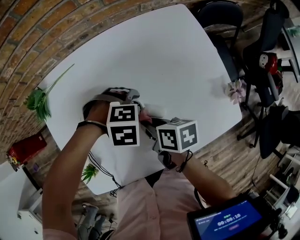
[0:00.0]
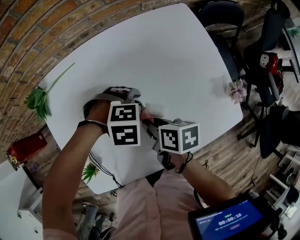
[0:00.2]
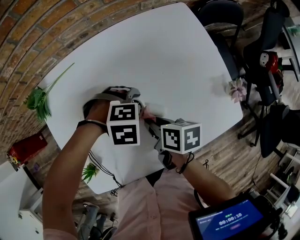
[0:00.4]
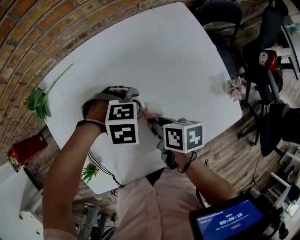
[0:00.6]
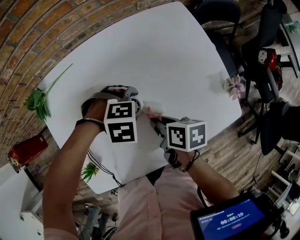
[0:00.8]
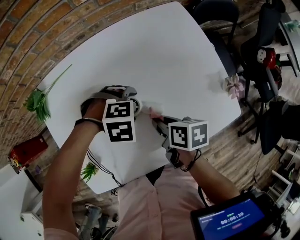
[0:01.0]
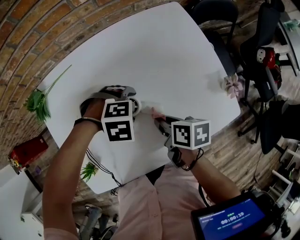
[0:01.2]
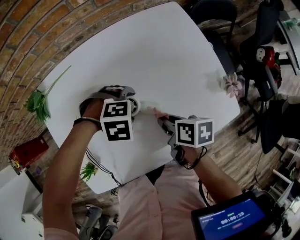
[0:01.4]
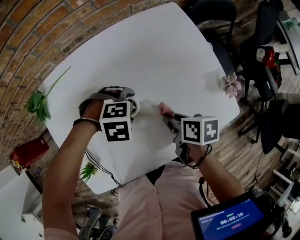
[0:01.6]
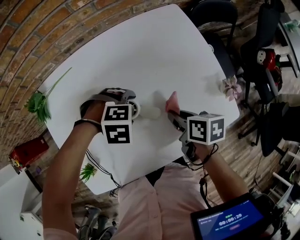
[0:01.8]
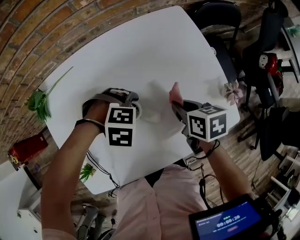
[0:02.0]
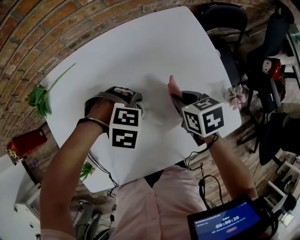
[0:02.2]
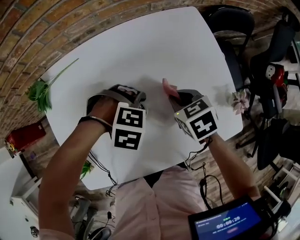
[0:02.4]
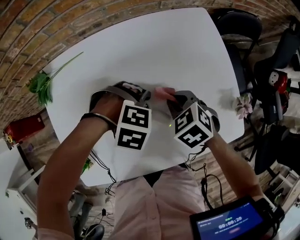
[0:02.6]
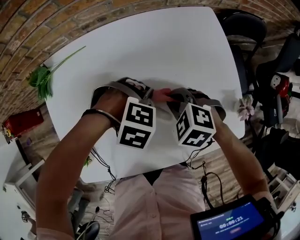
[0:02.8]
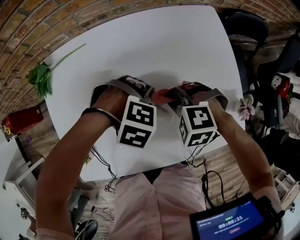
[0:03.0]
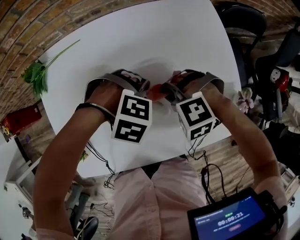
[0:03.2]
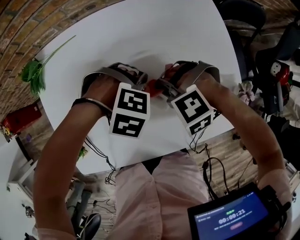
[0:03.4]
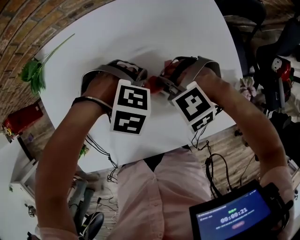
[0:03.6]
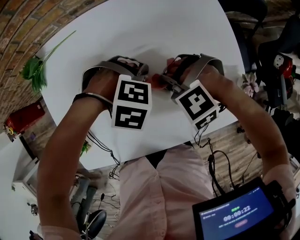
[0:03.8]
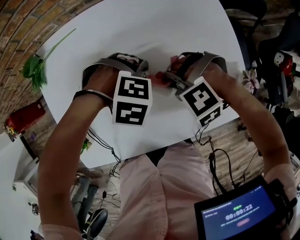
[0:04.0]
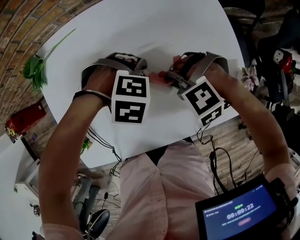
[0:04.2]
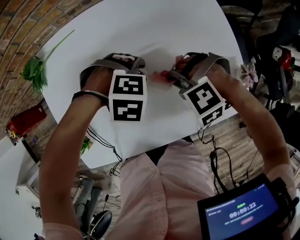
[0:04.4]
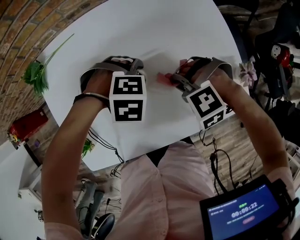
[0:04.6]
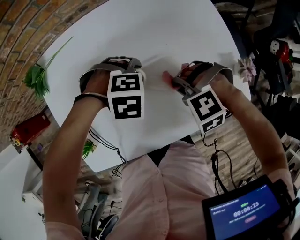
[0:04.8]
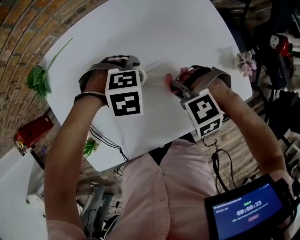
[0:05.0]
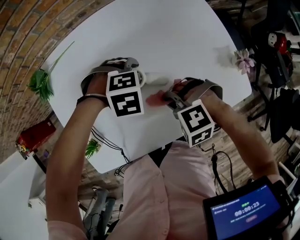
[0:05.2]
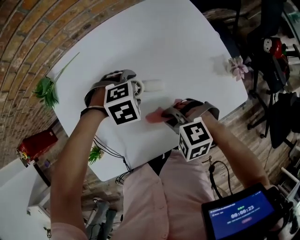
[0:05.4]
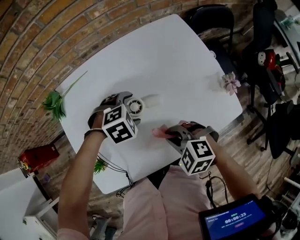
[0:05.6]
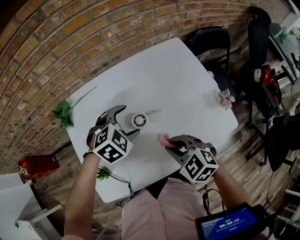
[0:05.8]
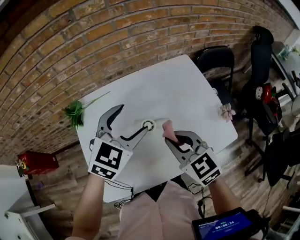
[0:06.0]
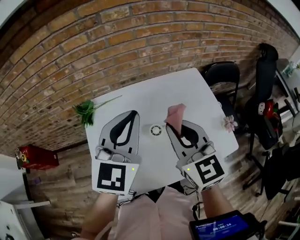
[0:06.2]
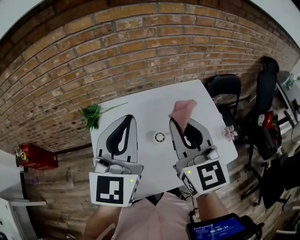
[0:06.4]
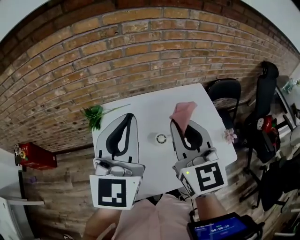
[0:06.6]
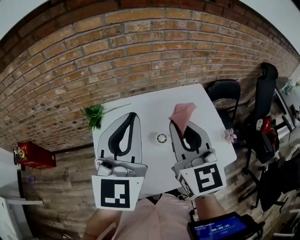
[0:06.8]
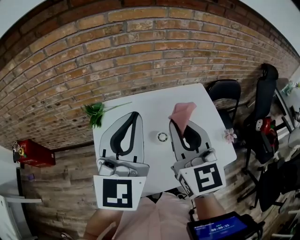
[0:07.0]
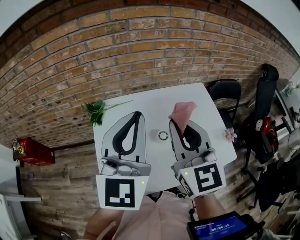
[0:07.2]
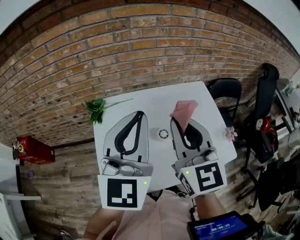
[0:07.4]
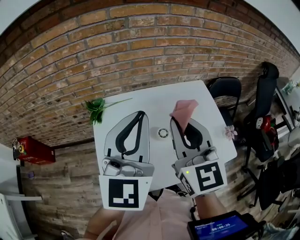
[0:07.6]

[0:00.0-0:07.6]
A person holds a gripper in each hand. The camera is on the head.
0.0 to 1.6 s: The right gripper moves roughly 10 cm.
1.6 to 3.0 s: The right gripper changes place by approximately 5 cm, and twists some 110 degrees counterclockwise, seen from behind.
3.0 to 4.6 s: The right gripper shifts by about 5 cm, and swivels about 20 degrees.
4.6 to 6.0 s: Both grippers move upward, some 20 cm. The left gripper points its fingers roughly 50 degrees further upward. Meanwhile the right gripper tilts its fingers approximately 50 degrees upward.
6.0 to 7.6 s: The right gripper goes roughly 20 cm upward, and swivels approximately 30 degrees. Meanwhile the left gripper moves upward and to the left, approximately 20 cm, tilts its fingers some 30 degrees upward, and closes its fingers.

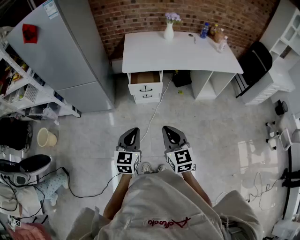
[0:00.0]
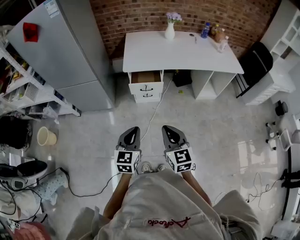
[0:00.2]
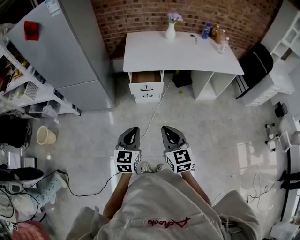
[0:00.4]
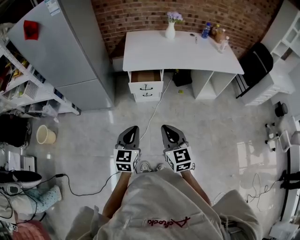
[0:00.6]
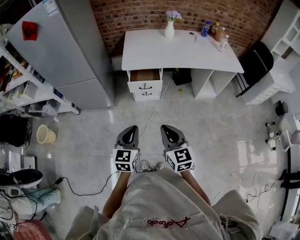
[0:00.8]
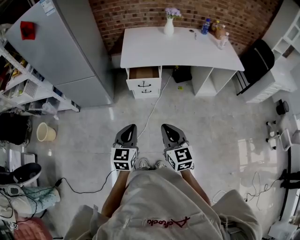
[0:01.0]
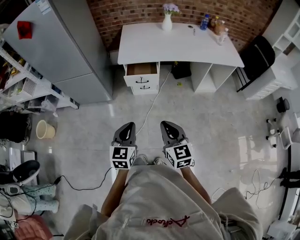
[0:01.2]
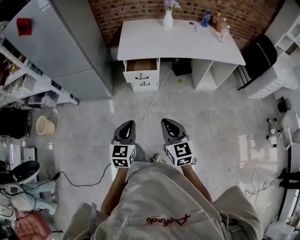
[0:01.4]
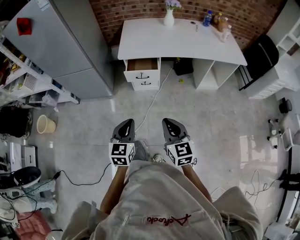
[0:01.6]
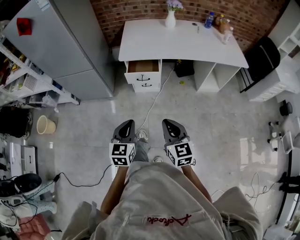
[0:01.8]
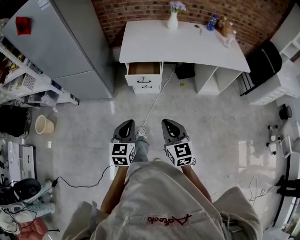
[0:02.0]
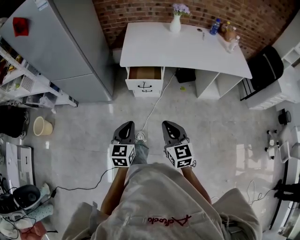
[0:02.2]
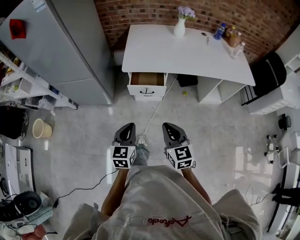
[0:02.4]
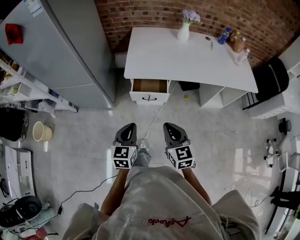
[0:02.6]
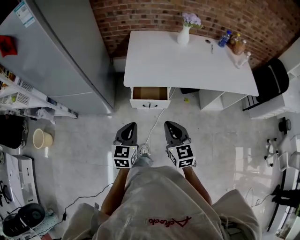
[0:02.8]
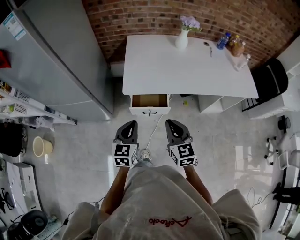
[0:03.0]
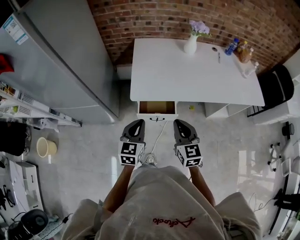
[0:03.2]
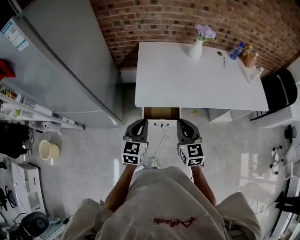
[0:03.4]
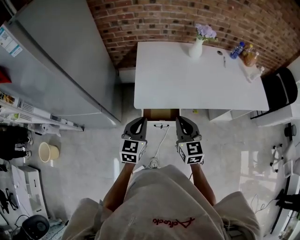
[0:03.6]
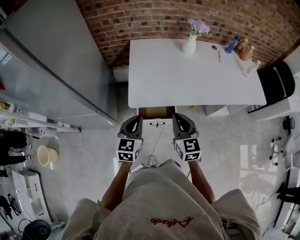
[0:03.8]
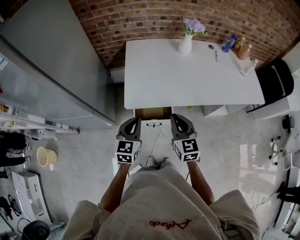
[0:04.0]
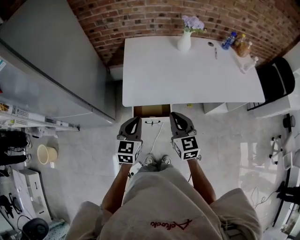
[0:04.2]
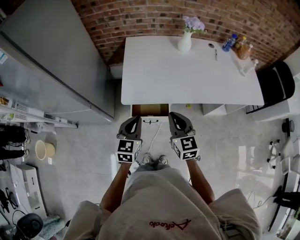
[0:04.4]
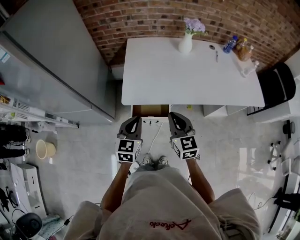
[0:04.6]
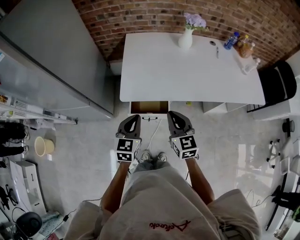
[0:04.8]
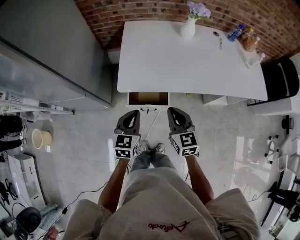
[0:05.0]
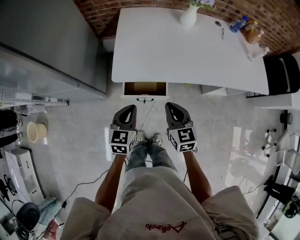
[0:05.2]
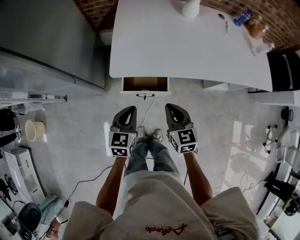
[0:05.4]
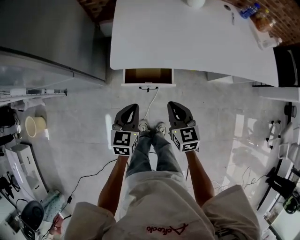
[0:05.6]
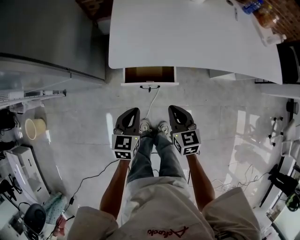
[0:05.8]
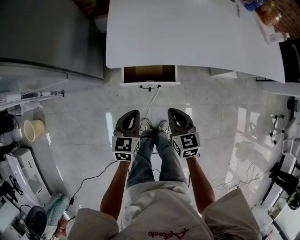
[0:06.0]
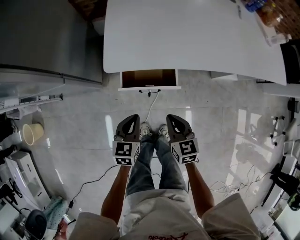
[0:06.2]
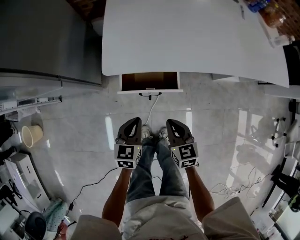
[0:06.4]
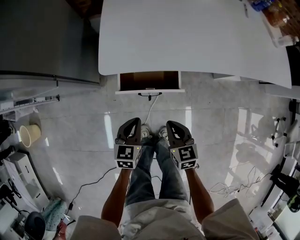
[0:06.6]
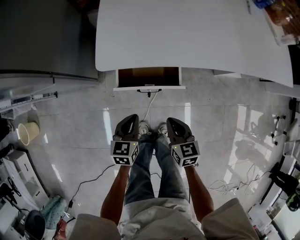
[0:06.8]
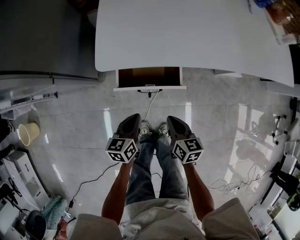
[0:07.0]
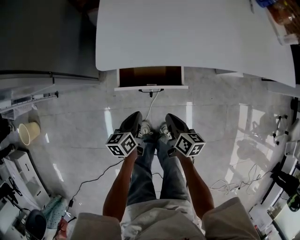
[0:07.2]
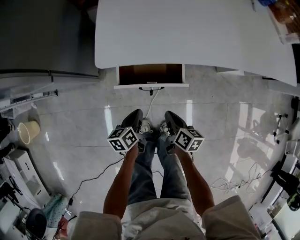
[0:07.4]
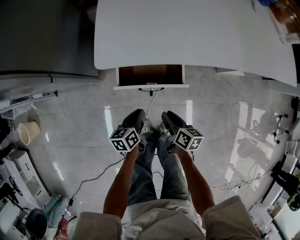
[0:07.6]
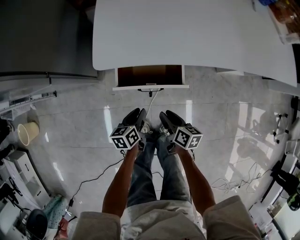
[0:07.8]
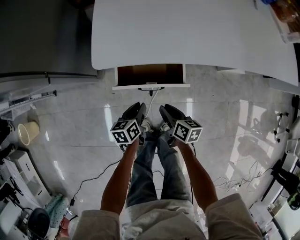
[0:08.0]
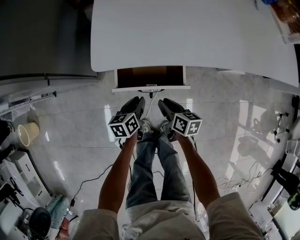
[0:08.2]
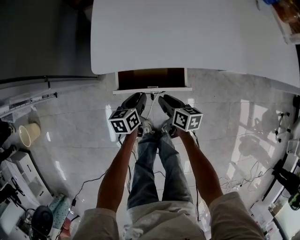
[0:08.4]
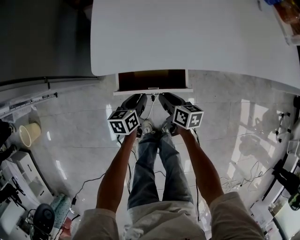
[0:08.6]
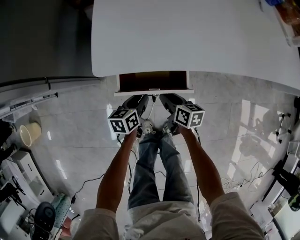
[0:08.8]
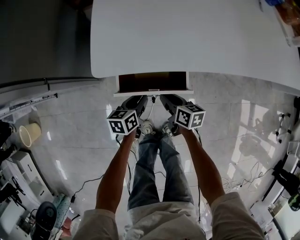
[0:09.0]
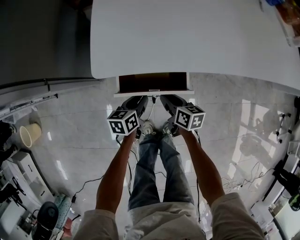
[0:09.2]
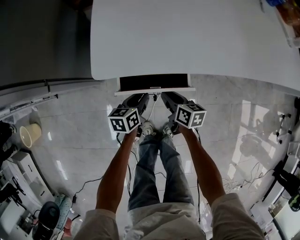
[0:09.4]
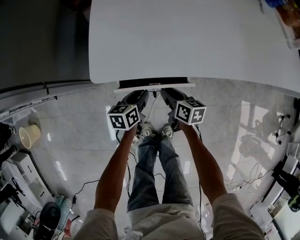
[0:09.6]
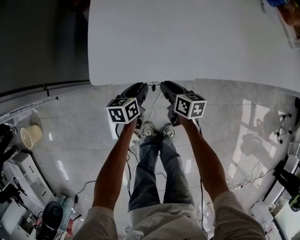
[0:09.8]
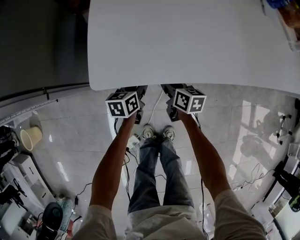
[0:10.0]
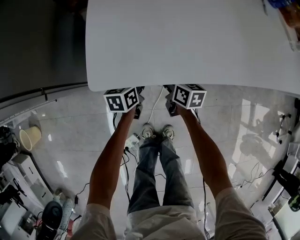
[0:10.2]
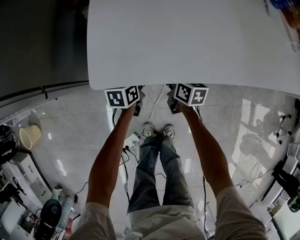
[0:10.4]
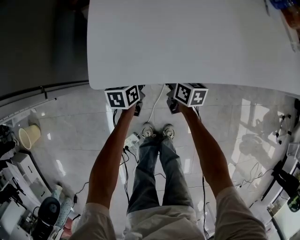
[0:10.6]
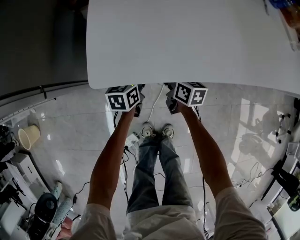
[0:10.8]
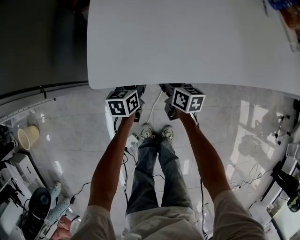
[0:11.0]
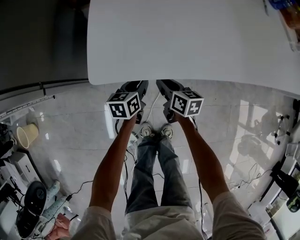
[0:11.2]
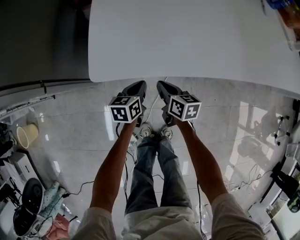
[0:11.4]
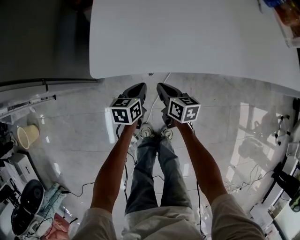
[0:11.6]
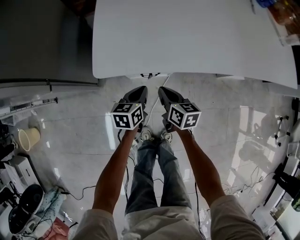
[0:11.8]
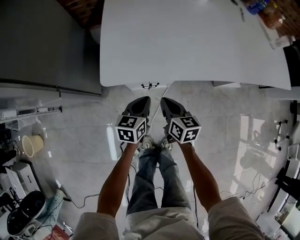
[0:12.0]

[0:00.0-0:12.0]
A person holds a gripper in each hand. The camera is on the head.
0.0 to 1.6 s: The right gripper is displaced to the right by some 5 cm.
1.6 to 3.0 s: Both grippers travel together forward, roughly 35 cm.
3.0 to 4.4 s: The grippers both shift forward by approximately 10 cm.
4.4 to 6.0 s: Both grippers travel together downward, approximately 20 cm. The right gripper rotates some 20 degrees.
6.0 to 7.6 s: Both grippers move downward, about 20 cm. The right gripper twists roughly 40 degrees clockwise, seen from behind, and opens up. The left gripper rotates roughly 40 degrees.
7.6 to 9.0 s: The two grippers go some 10 cm forward.
9.0 to 10.4 s: The grippers both shift forward by roughly 15 cm.
10.4 to 12.0 s: The two grippers go some 15 cm upward and backward. The left gripper closes up. The right gripper closes its fingers.

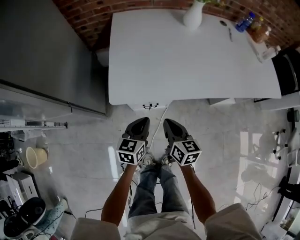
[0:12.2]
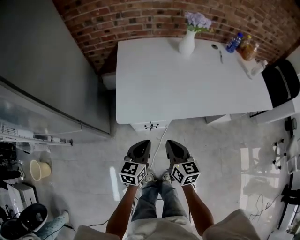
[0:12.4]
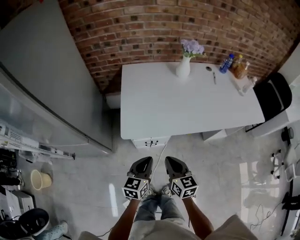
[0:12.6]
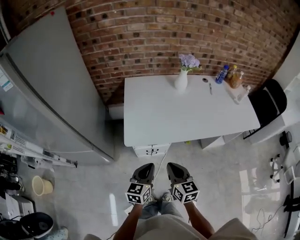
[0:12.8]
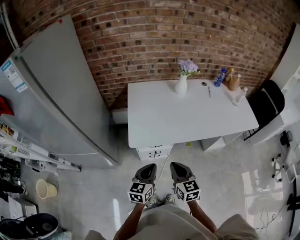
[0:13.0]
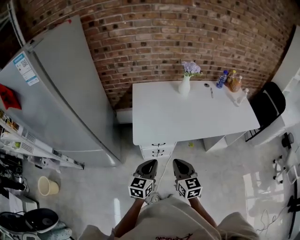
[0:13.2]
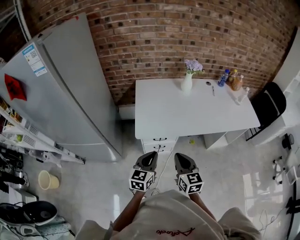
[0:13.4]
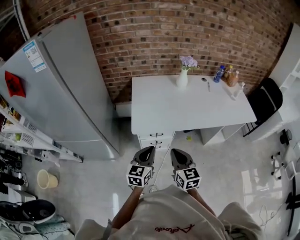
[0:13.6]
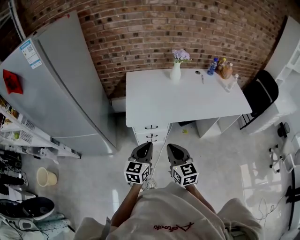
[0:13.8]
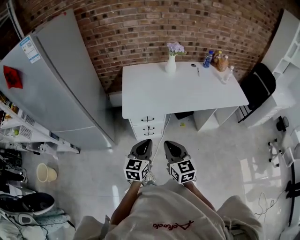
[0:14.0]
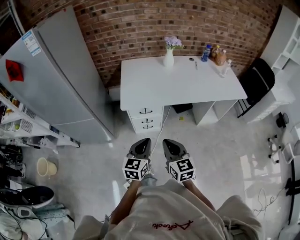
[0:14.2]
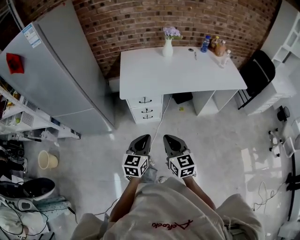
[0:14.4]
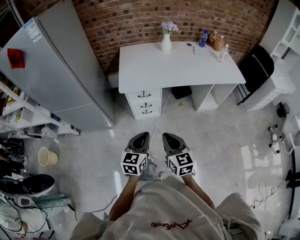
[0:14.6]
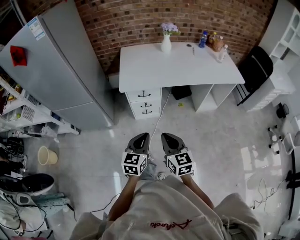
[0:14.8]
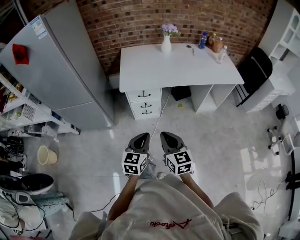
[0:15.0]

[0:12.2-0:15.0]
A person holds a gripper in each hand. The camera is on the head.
12.2 to 13.6 s: Both grippers move upward and backward, roughly 30 cm. The right gripper turns by roughly 20 degrees.
13.6 to 15.0 s: The two grippers go approximately 25 cm backward.

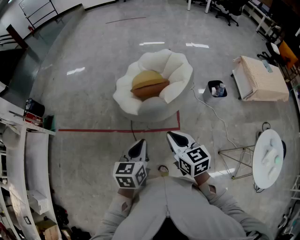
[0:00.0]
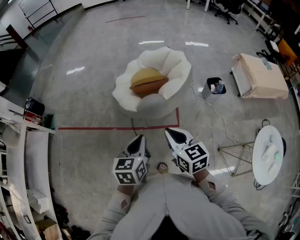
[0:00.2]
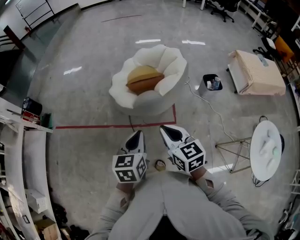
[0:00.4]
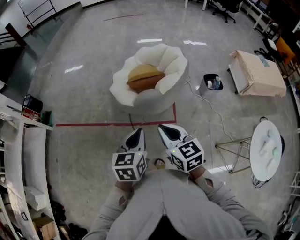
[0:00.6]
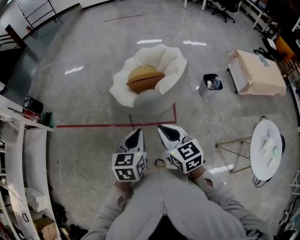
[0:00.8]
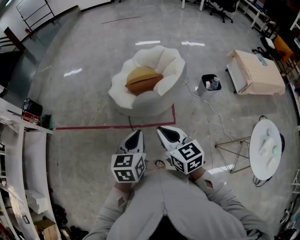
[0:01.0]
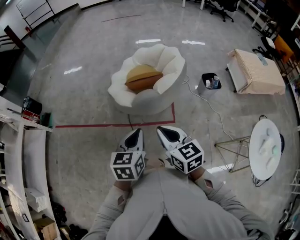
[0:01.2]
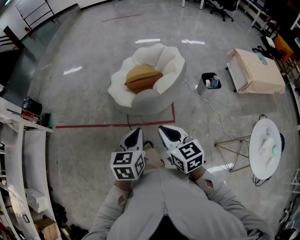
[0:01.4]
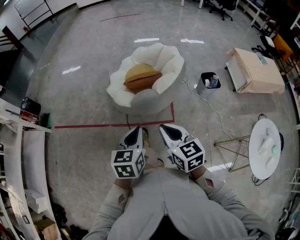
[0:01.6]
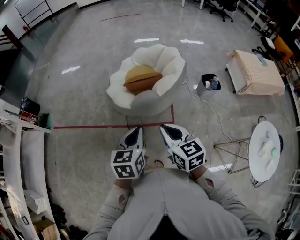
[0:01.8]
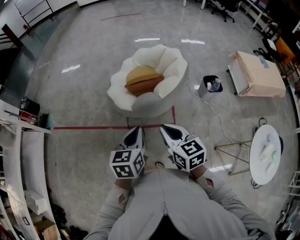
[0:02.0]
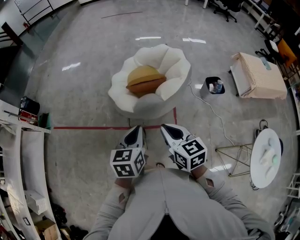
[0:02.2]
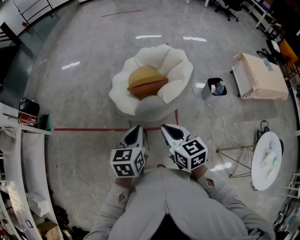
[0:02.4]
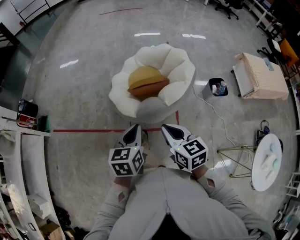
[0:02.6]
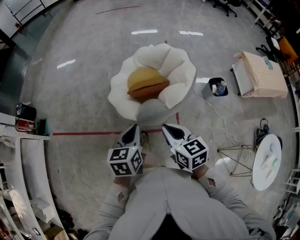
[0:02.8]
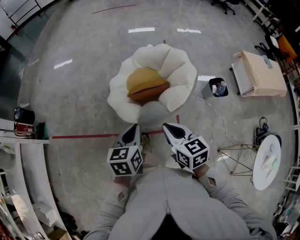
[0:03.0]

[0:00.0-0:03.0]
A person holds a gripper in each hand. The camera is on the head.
0.0 to 1.6 s: The grippers move only a little.
1.6 to 3.0 s: Both grippers move forward, about 25 cm.
